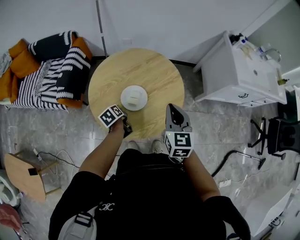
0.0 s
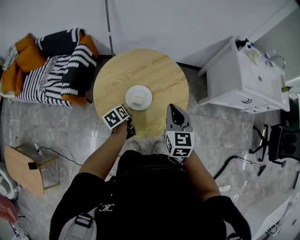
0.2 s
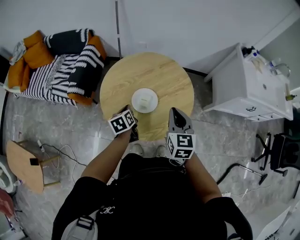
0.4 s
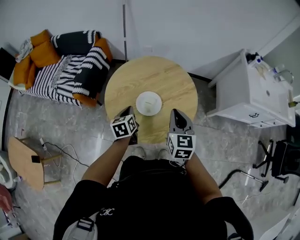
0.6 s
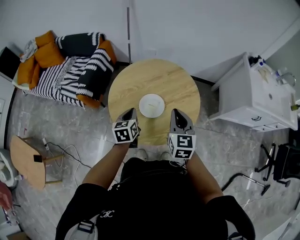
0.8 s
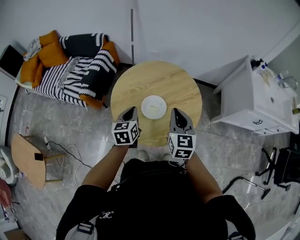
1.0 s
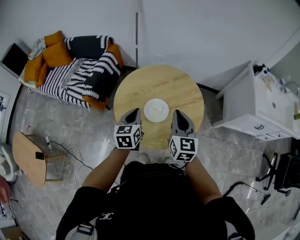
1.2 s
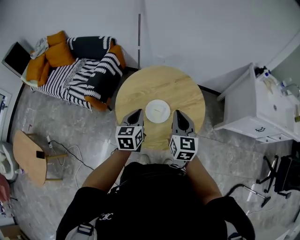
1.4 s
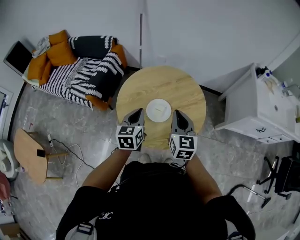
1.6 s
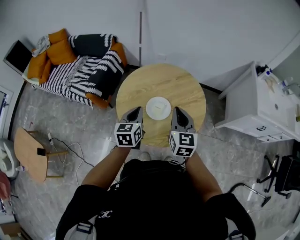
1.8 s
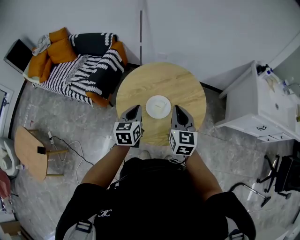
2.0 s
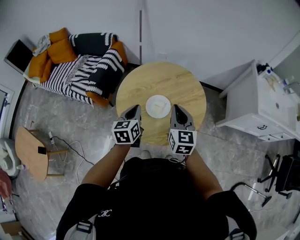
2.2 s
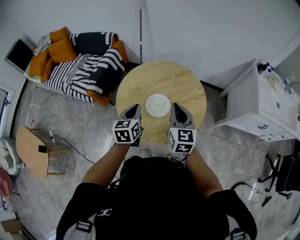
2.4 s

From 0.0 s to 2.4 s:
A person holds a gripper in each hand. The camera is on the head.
From 0.0 s to 1.2 s: The right gripper changes place by about 5 cm.

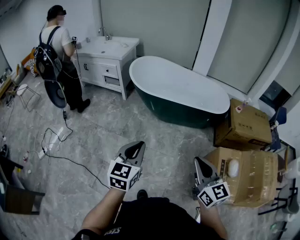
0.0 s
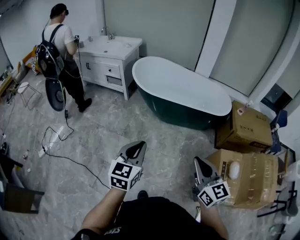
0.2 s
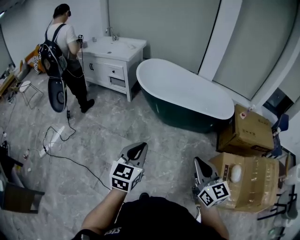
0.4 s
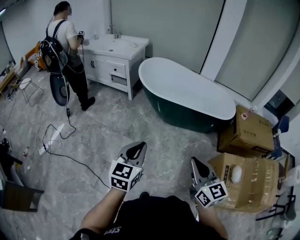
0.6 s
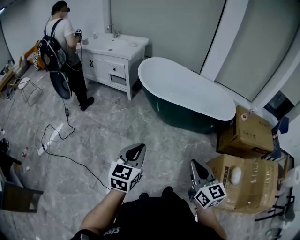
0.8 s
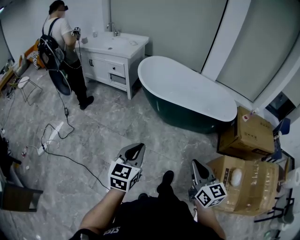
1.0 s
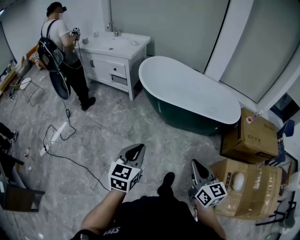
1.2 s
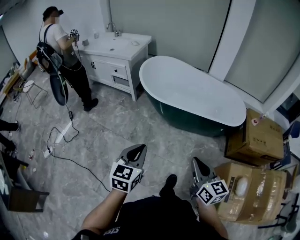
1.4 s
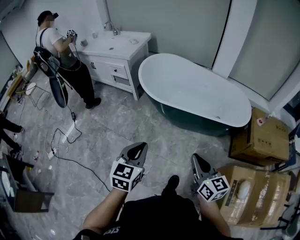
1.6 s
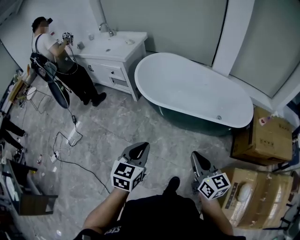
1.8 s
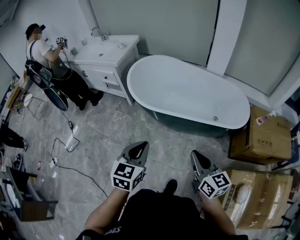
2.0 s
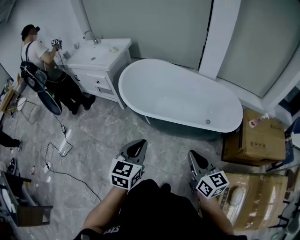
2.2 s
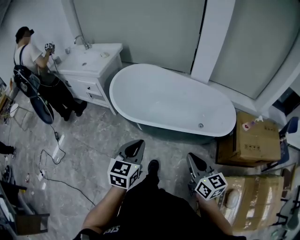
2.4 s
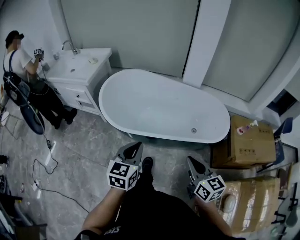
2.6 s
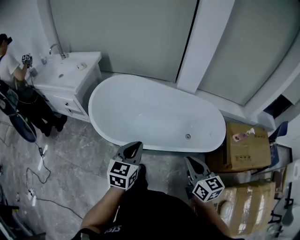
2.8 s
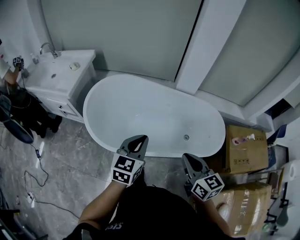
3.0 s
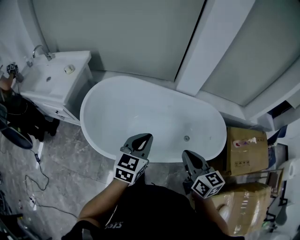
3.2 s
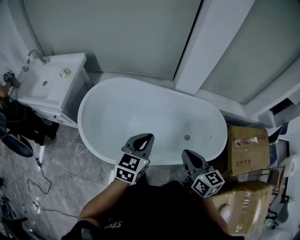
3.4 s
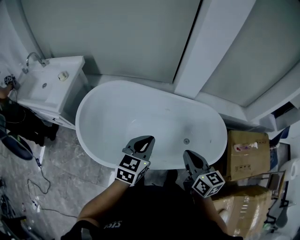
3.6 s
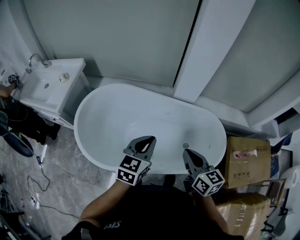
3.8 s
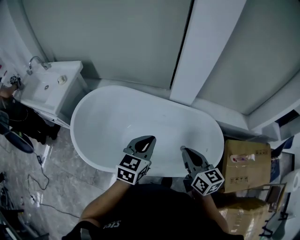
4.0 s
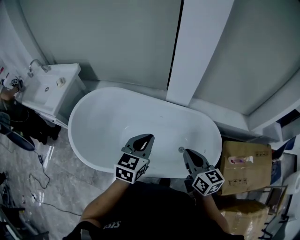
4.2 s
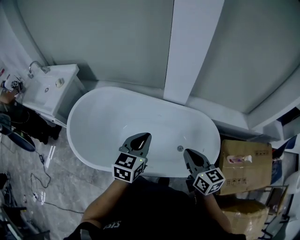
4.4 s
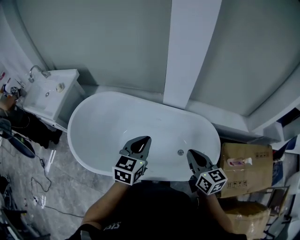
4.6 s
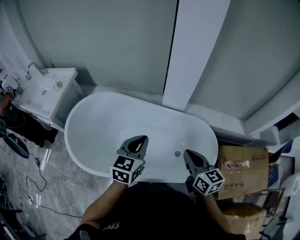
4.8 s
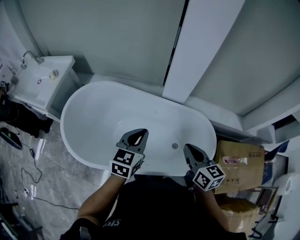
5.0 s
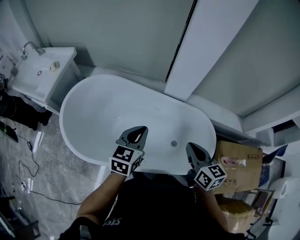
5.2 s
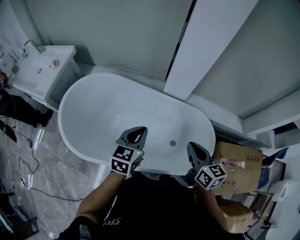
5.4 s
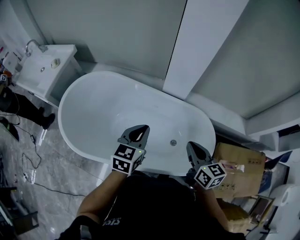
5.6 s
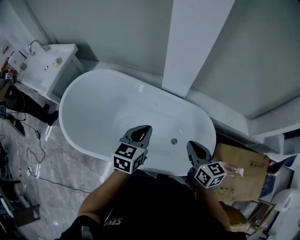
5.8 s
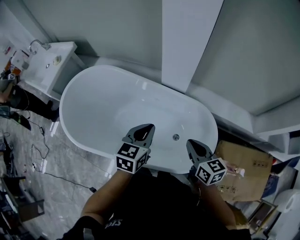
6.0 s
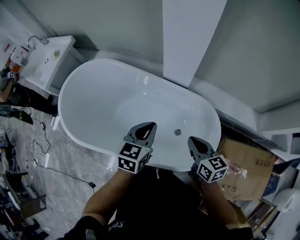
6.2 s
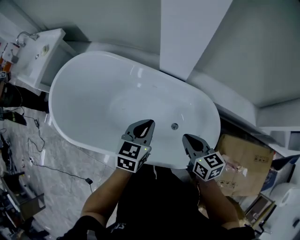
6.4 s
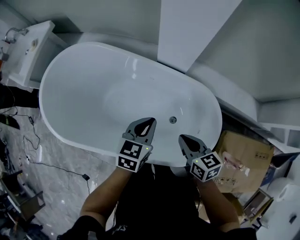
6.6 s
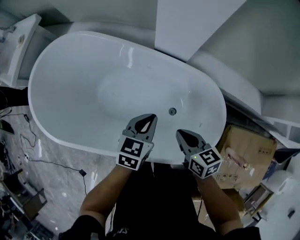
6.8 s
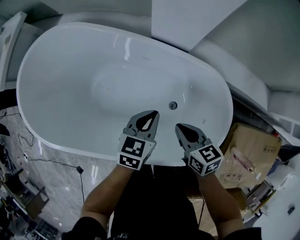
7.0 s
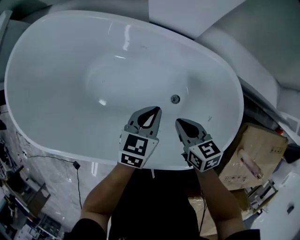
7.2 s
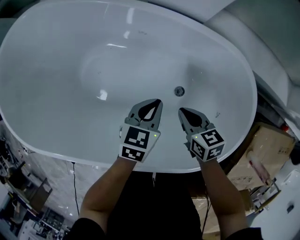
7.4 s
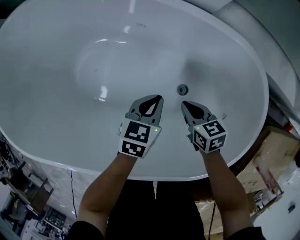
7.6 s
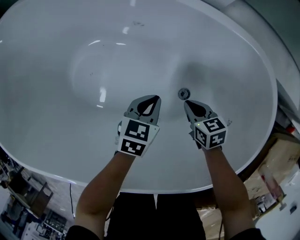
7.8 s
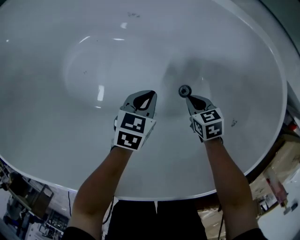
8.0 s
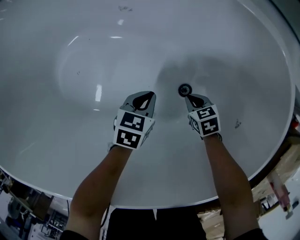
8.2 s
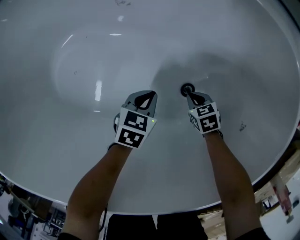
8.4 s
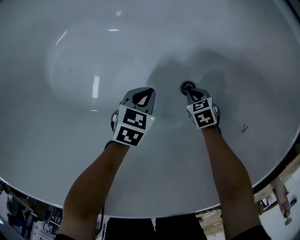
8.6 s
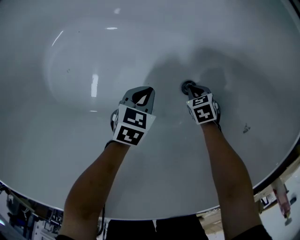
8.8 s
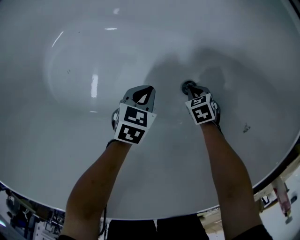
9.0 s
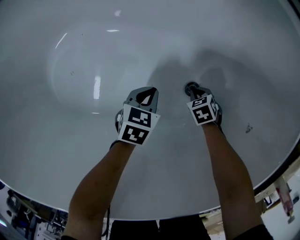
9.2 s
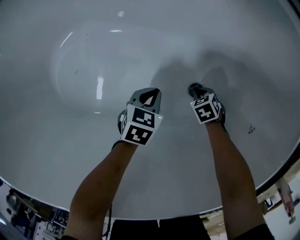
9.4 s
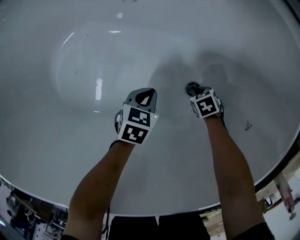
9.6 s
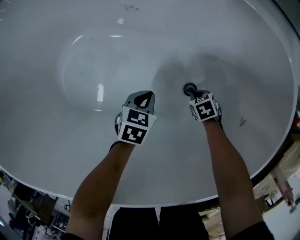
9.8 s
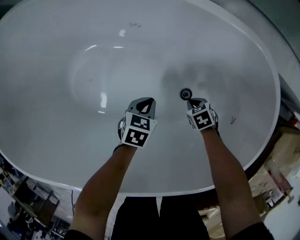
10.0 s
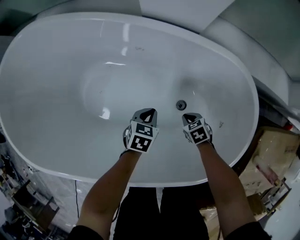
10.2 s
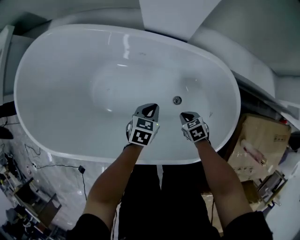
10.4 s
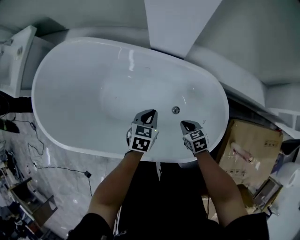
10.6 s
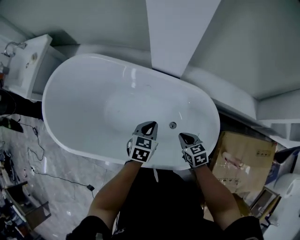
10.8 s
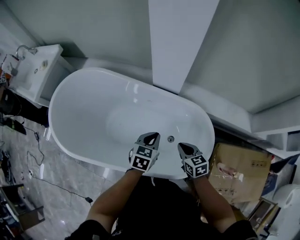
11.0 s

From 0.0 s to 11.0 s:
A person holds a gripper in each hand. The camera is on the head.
From 0.0 s to 1.6 s: Both grippers move forward, about 25 cm.
From 1.6 s to 3.2 s: The two grippers travel together, forward, some 60 cm. The left gripper rotates approximately 20 degrees.
From 3.2 s to 4.8 s: The grippers both shift to the right and forward by roughly 25 cm.
From 4.8 s to 6.2 s: The left gripper goes about 20 cm to the right and downward. The right gripper moves to the right, downward and forward, approximately 20 cm.
From 6.2 s to 7.8 s: The grippers both shift downward by approximately 60 cm. The right gripper rotates approximately 30 degrees, while the left gripper rotates roughly 20 degrees.
From 7.8 s to 9.4 s: The two grippers go approximately 20 cm downward. The right gripper tilts its fingers some 30 degrees downward.
From 9.4 s to 11.0 s: The two grippers go about 70 cm upward. The left gripper turns by some 20 degrees; the right gripper tips its fingers upward by about 40 degrees.

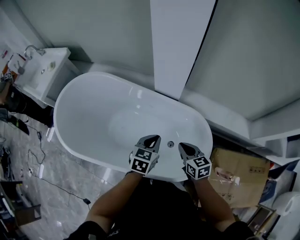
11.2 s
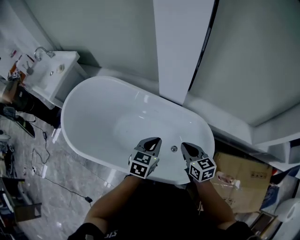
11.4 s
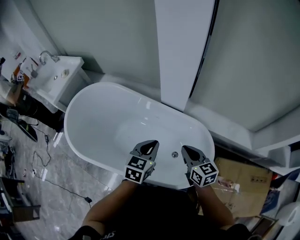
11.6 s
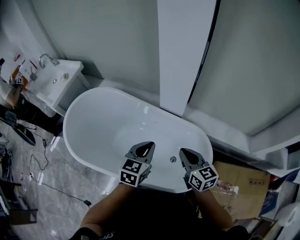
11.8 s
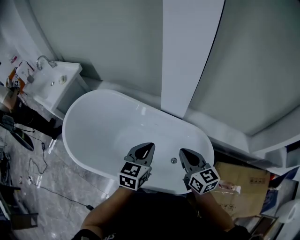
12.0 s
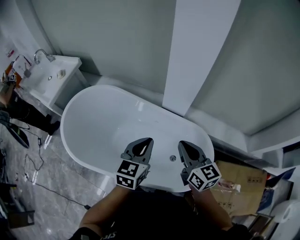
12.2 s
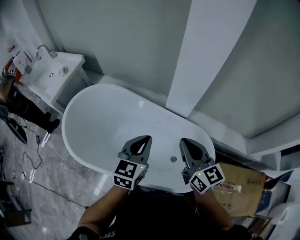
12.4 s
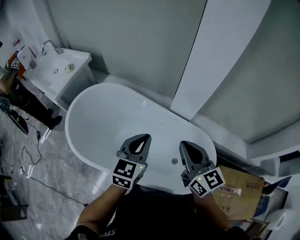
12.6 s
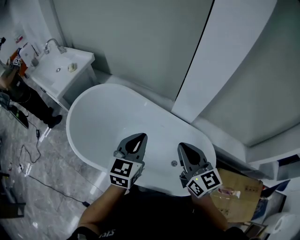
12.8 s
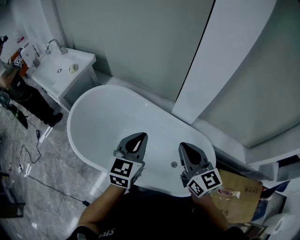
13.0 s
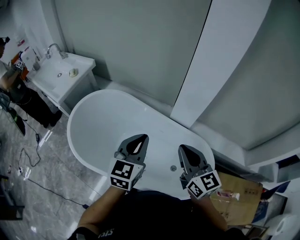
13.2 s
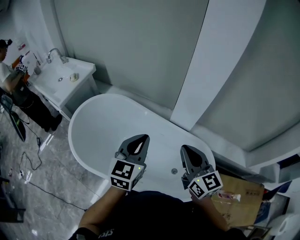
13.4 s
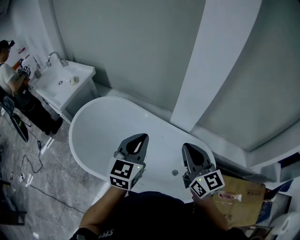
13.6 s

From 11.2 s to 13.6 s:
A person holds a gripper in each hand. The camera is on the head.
From 11.2 s to 12.4 s: The grippers both shift upward and to the left by approximately 25 cm. The right gripper turns by some 30 degrees. The left gripper changes its angle by some 20 degrees.
From 12.4 s to 13.6 s: The right gripper ends up approximately 5 cm from where it was. The left gripper shifts about 10 cm upward and to the left.

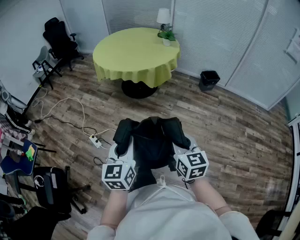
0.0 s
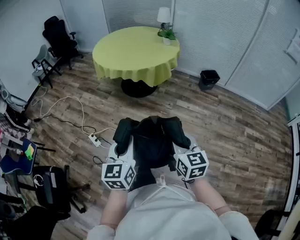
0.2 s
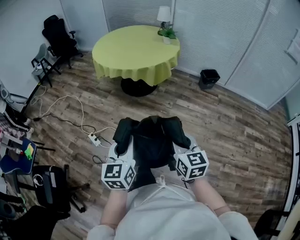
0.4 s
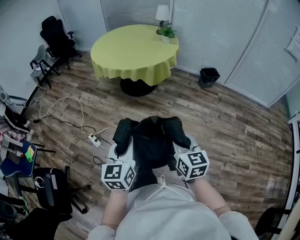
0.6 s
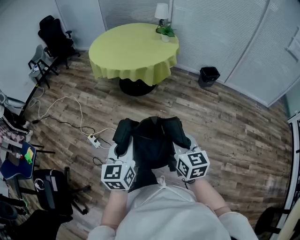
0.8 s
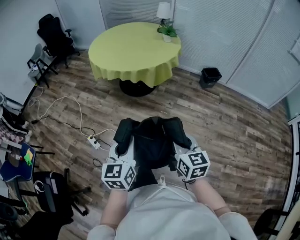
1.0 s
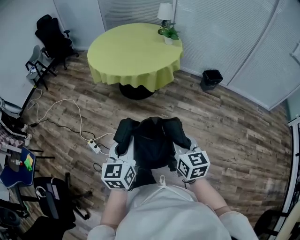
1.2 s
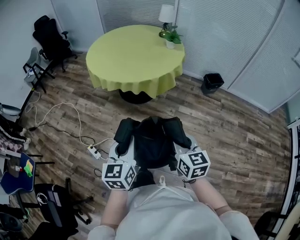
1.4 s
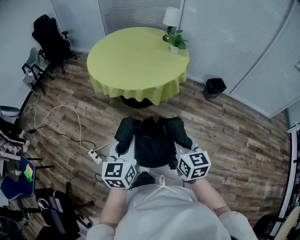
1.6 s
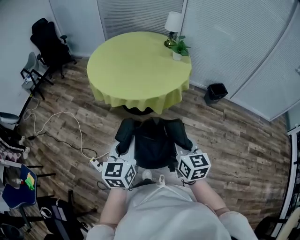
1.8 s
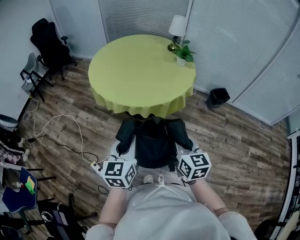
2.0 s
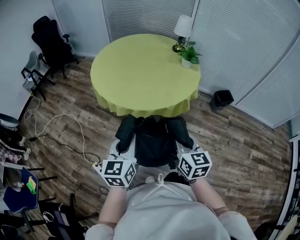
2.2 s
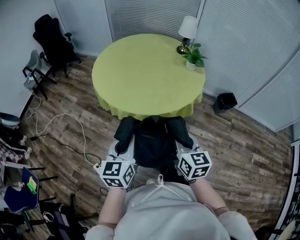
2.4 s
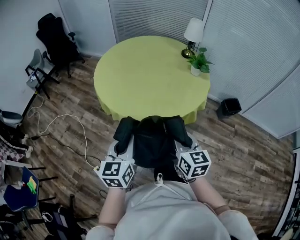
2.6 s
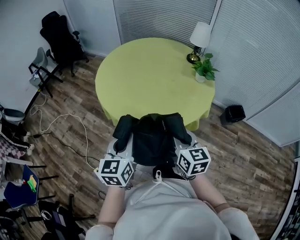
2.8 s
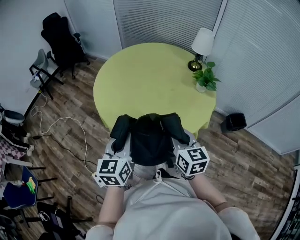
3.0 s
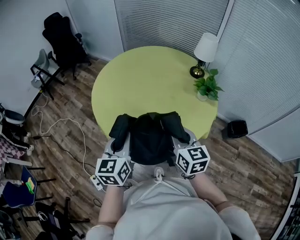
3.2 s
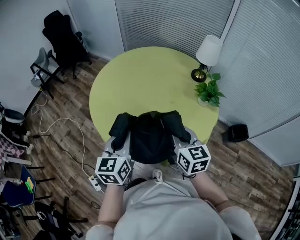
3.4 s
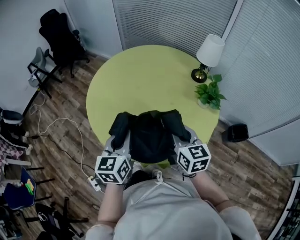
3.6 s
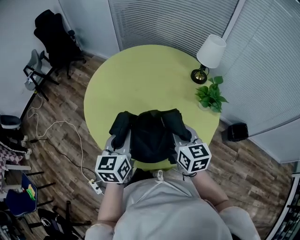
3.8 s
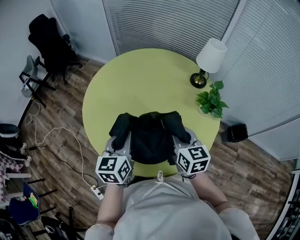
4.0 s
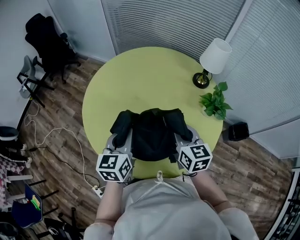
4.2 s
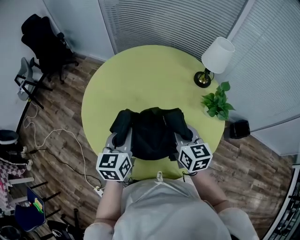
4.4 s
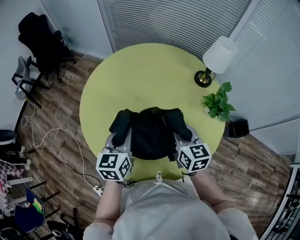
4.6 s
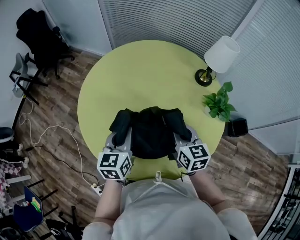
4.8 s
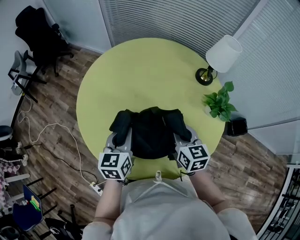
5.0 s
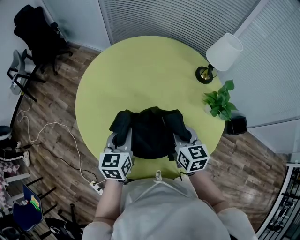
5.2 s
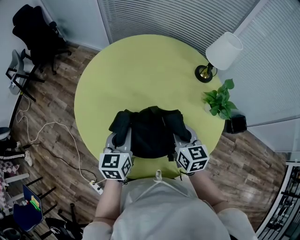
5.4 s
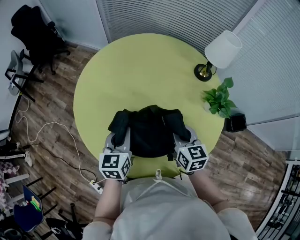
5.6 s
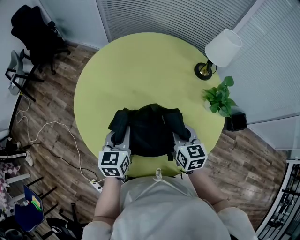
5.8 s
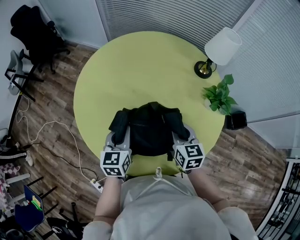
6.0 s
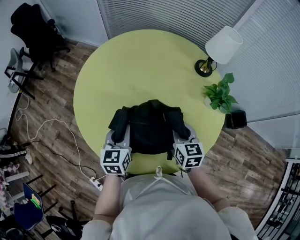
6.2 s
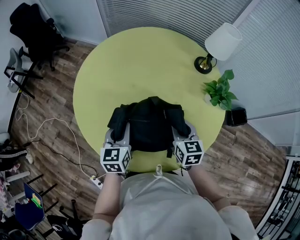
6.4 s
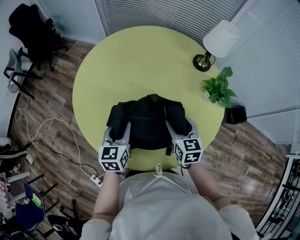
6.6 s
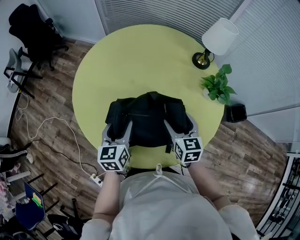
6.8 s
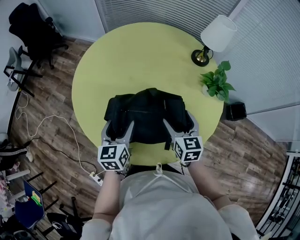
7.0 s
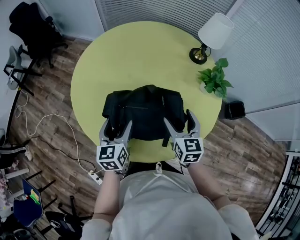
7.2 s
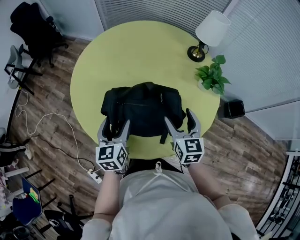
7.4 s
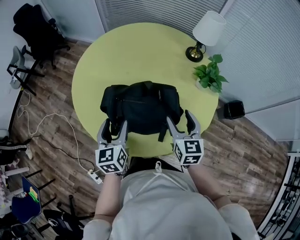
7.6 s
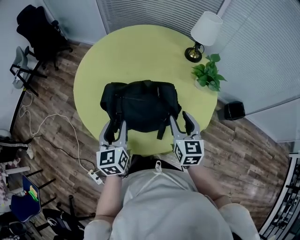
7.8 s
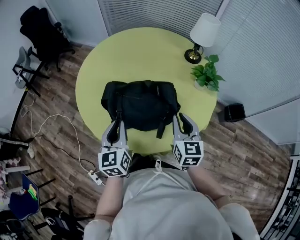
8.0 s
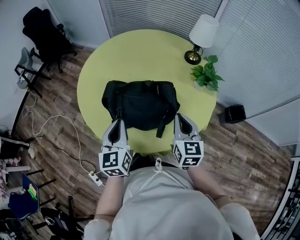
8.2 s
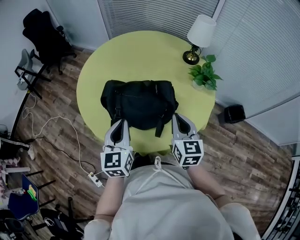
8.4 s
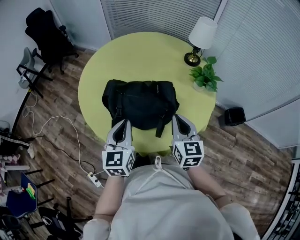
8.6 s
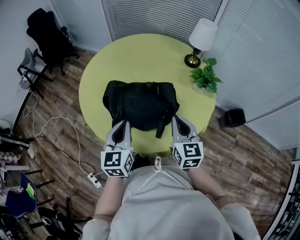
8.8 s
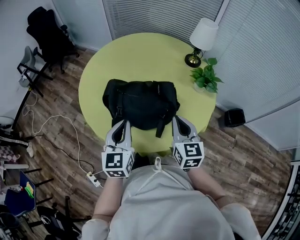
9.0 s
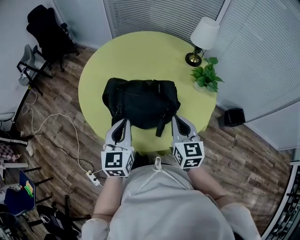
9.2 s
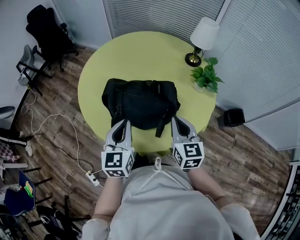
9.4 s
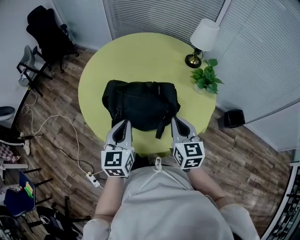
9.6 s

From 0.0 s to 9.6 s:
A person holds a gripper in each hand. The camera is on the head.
From 0.0 s to 1.6 s: Both grippers travel together forward, about 30 cm.
From 1.6 s to 3.2 s: The two grippers travel together, forward, roughly 50 cm.
From 3.2 s to 4.8 s: Both grippers travel together forward, some 25 cm.
From 4.8 s to 6.4 s: The grippers both shift downward by approximately 5 cm.
From 6.4 s to 8.0 s: The right gripper moves backward, upward and to the right, some 15 cm, and opens, then closes again; the left gripper shifts approximately 15 cm backward and upward, and opens and closes again.
From 8.0 s to 9.6 s: The grippers move only a little.
